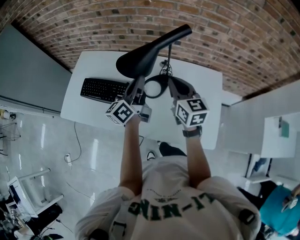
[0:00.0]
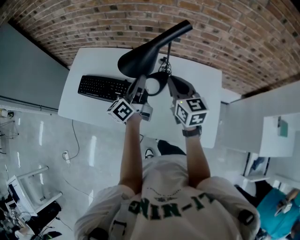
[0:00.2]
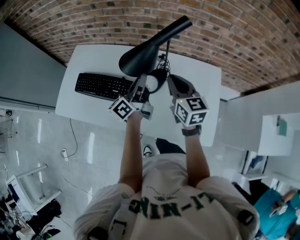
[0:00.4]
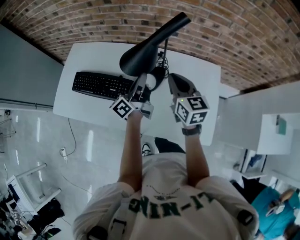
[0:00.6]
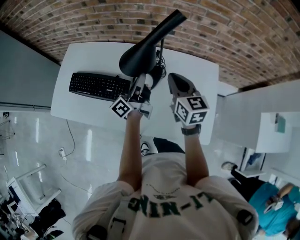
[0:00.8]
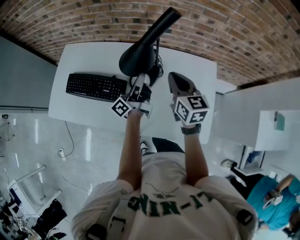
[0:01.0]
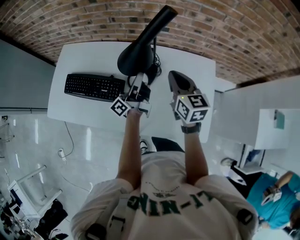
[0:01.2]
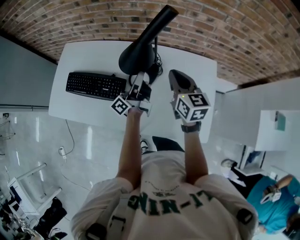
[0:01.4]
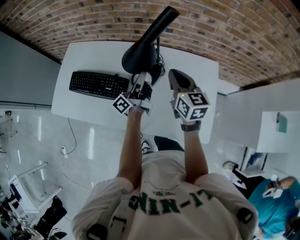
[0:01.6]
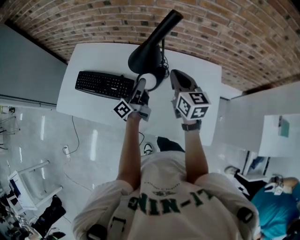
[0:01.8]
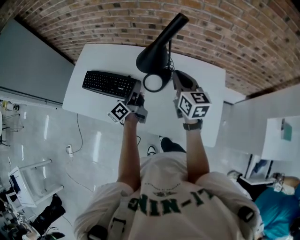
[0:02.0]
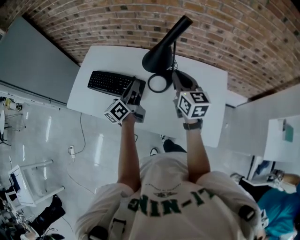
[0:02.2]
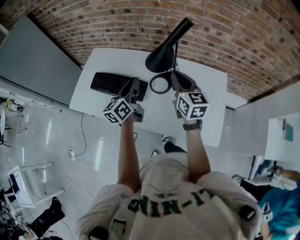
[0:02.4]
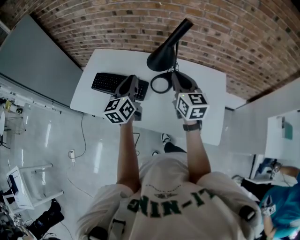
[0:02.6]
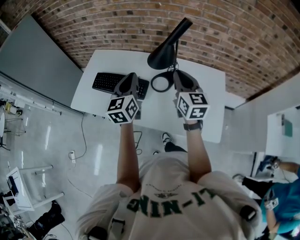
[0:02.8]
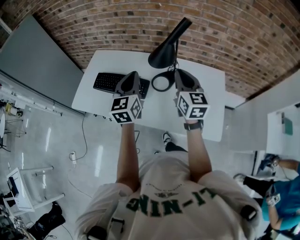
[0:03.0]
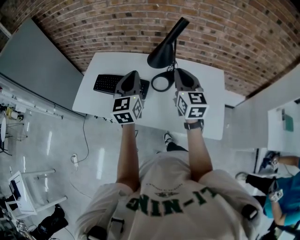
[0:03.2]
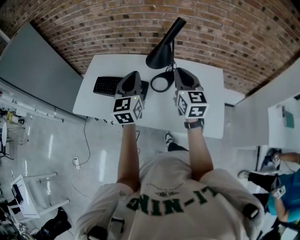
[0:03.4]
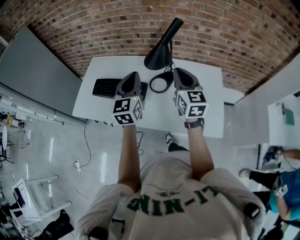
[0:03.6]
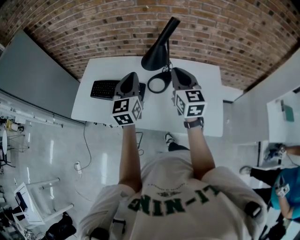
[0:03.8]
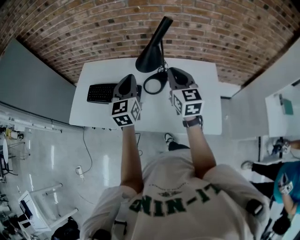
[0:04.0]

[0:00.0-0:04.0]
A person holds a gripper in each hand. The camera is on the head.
0:00.0 to 0:01.4: The left gripper shifts roughly 10 cm downward and to the right, and swivels some 30 degrees. Meanwhile the right gripper goes approximately 5 cm to the right.
0:01.4 to 0:02.6: Both grippers move to the left, backward and upward, some 15 cm. The left gripper twists some 50 degrees clockwise, seen from behind.

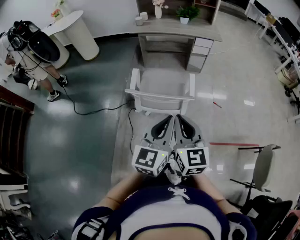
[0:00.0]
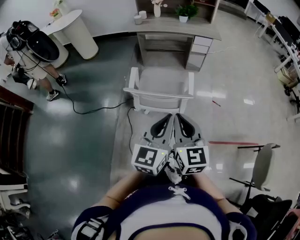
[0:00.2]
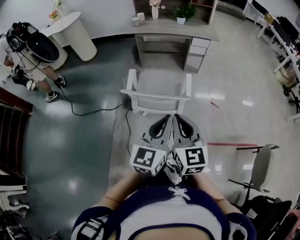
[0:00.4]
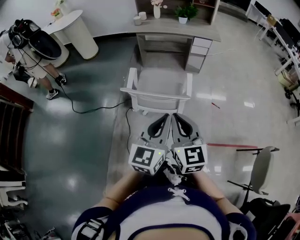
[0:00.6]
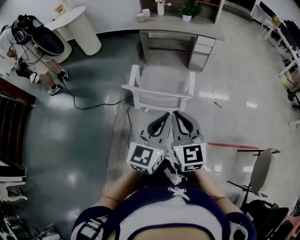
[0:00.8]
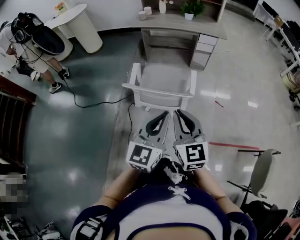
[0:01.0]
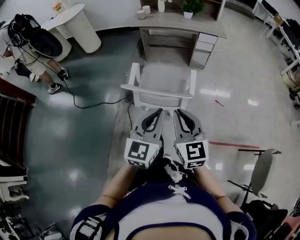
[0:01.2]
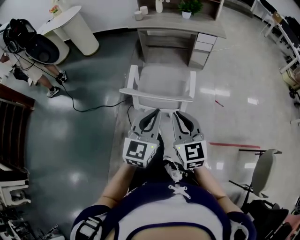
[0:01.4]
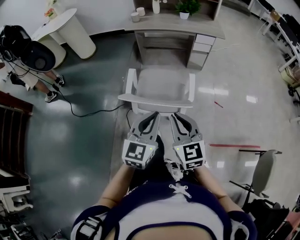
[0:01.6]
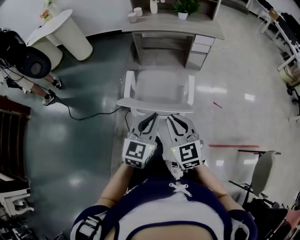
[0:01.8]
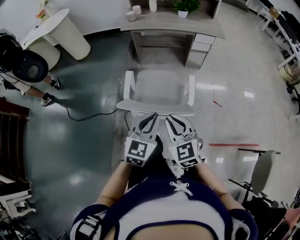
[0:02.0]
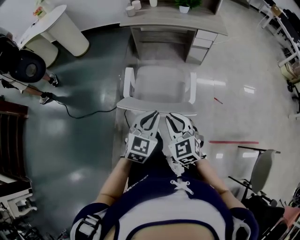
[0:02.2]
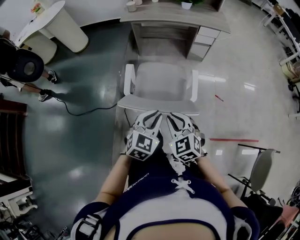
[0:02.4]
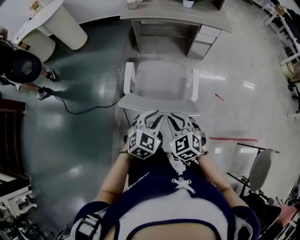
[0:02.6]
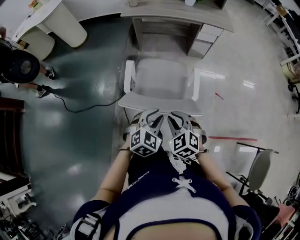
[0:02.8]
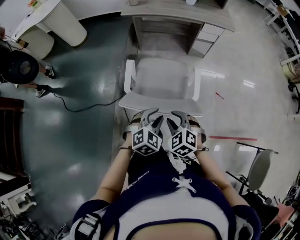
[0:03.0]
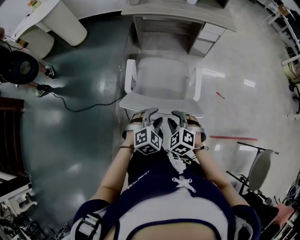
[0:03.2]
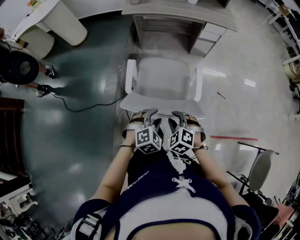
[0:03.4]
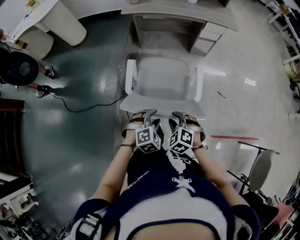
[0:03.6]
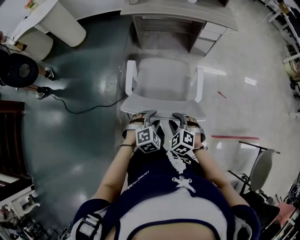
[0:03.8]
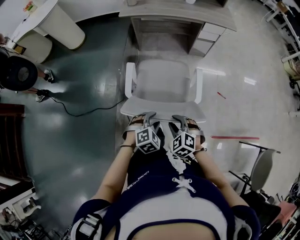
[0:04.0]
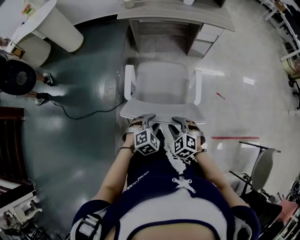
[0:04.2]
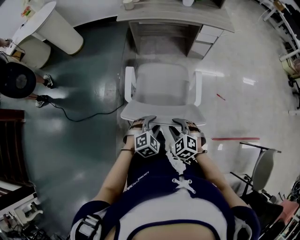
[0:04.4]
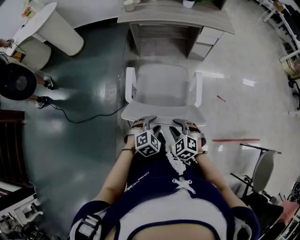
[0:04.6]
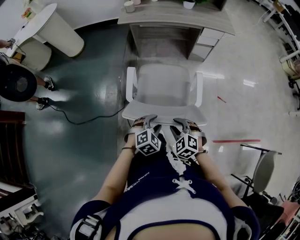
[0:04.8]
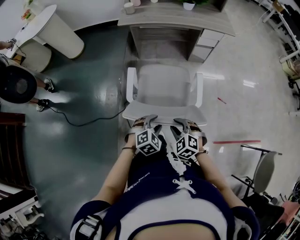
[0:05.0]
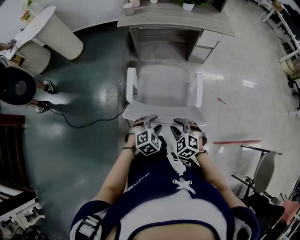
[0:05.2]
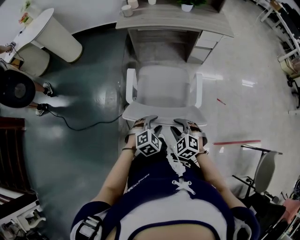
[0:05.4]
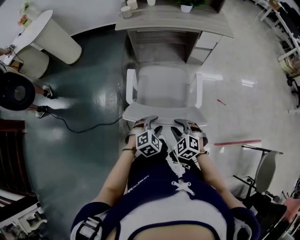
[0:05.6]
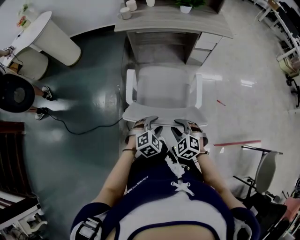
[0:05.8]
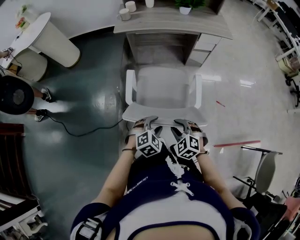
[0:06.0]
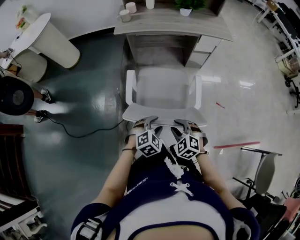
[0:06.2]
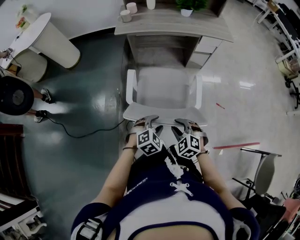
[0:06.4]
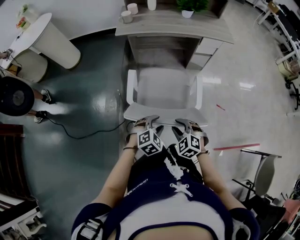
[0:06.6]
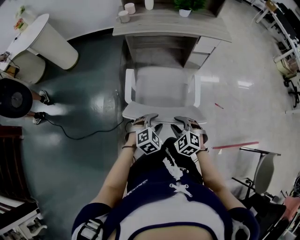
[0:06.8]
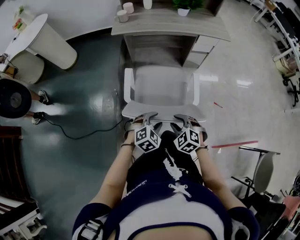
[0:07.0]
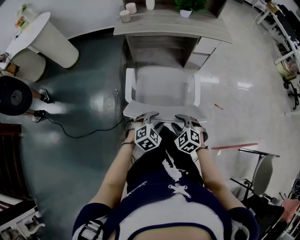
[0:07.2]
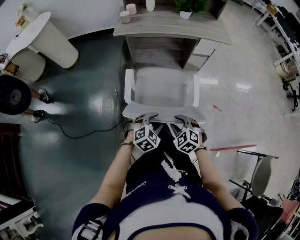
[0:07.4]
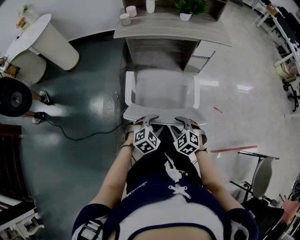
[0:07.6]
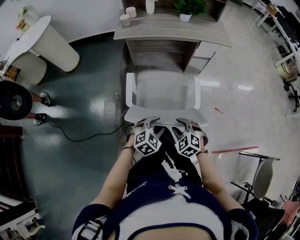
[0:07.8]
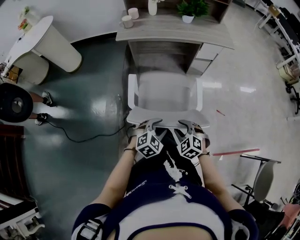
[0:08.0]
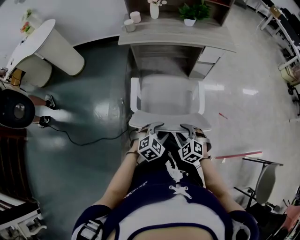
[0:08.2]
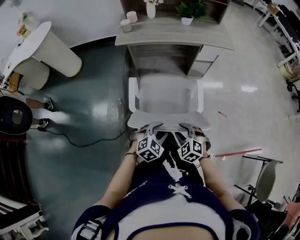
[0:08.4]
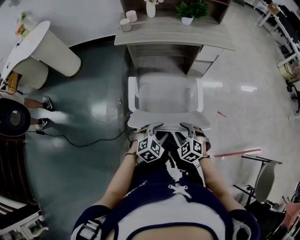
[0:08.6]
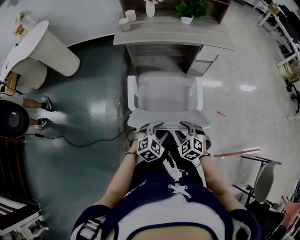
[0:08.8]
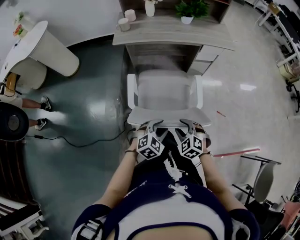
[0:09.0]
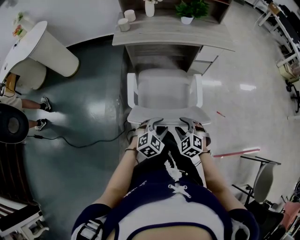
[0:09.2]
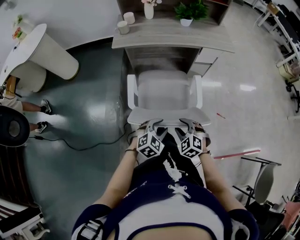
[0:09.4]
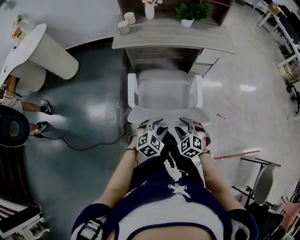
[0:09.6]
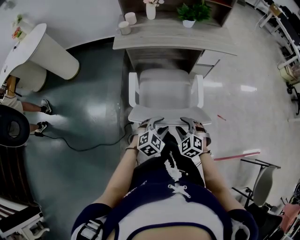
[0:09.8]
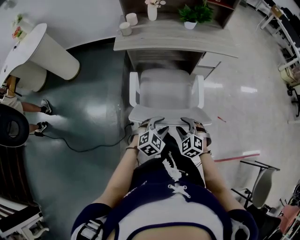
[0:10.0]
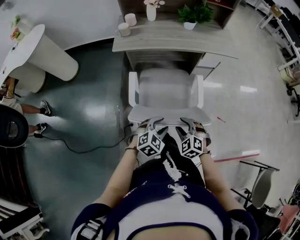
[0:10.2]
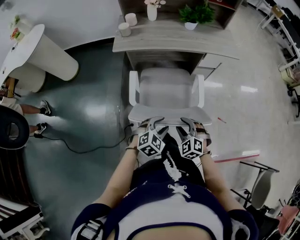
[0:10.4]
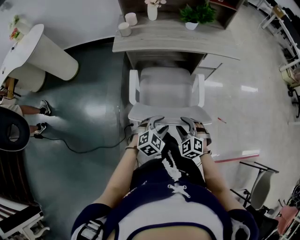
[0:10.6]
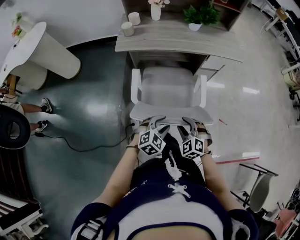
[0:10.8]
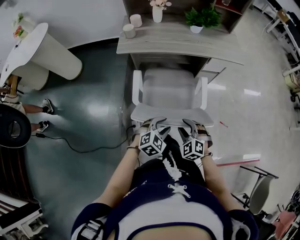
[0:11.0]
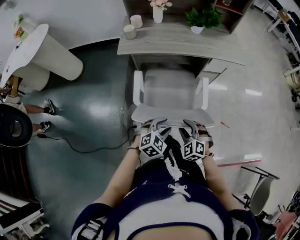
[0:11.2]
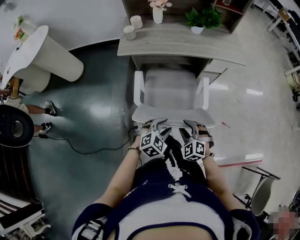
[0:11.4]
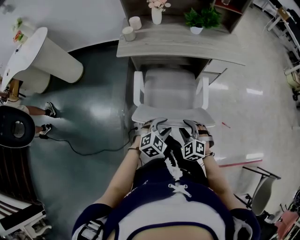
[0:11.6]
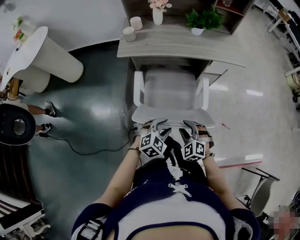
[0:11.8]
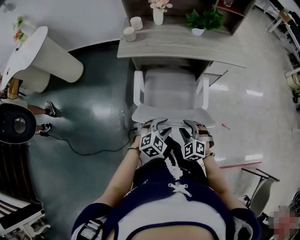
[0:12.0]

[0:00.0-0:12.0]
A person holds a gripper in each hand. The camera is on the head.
0:00.0 to 0:01.6: The grippers both shift forward and downward by some 10 cm.
0:01.6 to 0:03.0: Both grippers move downward and forward, some 20 cm. The right gripper tips its fingers downward by roughly 30 degrees, and opens up; the left gripper angles its fingers downward, by some 30 degrees, and opens up.
0:03.0 to 0:04.4: Both grippers travel together downward, approximately 5 cm.
0:04.4 to 0:06.0: The grippers both shift forward by roughly 10 cm.
0:06.0 to 0:07.6: The right gripper shifts roughly 5 cm forward.
0:07.6 to 0:09.0: Both grippers travel together forward, about 5 cm.
0:09.0 to 0:10.4: The grippers both shift forward by approximately 10 cm.
0:10.4 to 0:12.0: The grippers both shift forward by roughly 5 cm.

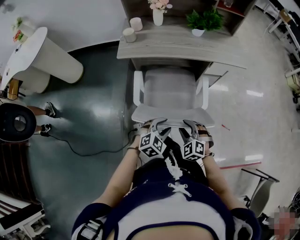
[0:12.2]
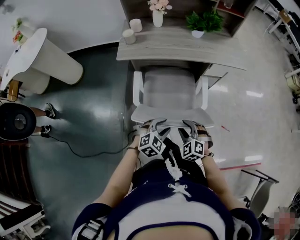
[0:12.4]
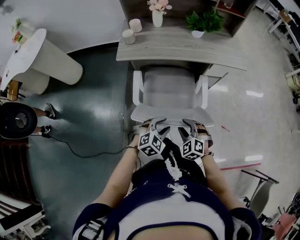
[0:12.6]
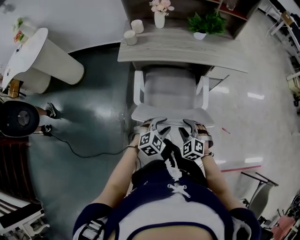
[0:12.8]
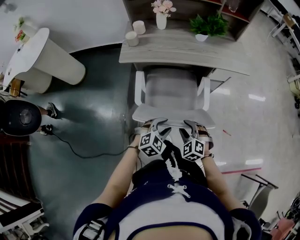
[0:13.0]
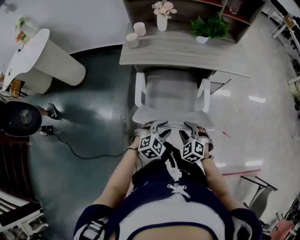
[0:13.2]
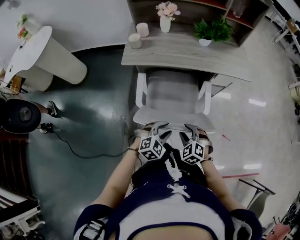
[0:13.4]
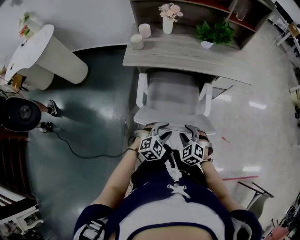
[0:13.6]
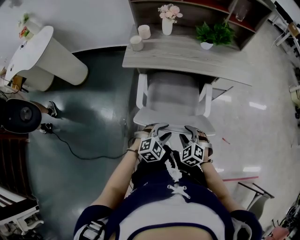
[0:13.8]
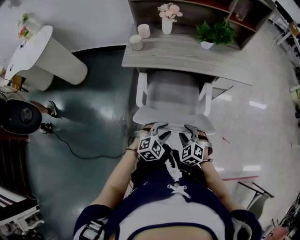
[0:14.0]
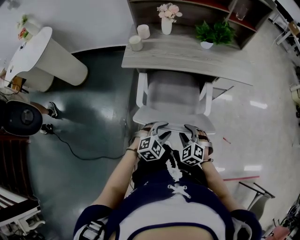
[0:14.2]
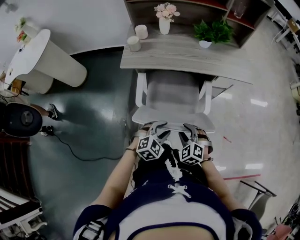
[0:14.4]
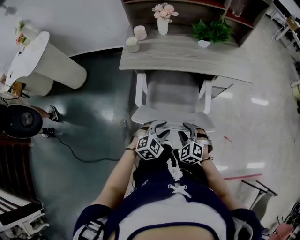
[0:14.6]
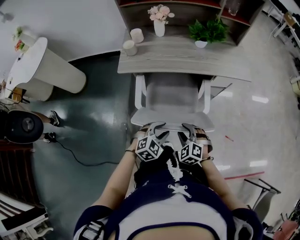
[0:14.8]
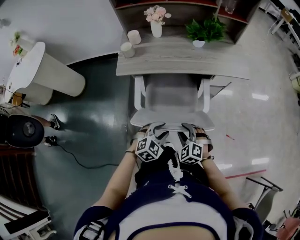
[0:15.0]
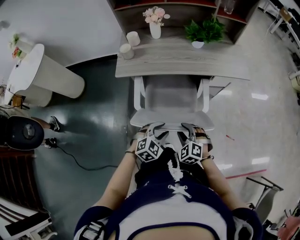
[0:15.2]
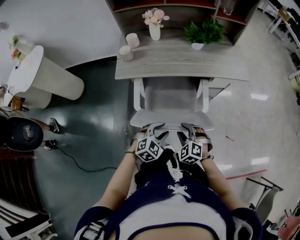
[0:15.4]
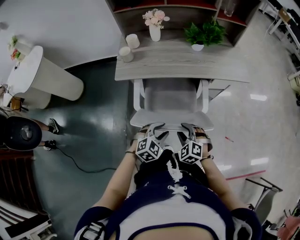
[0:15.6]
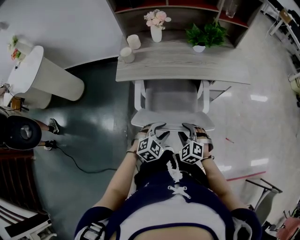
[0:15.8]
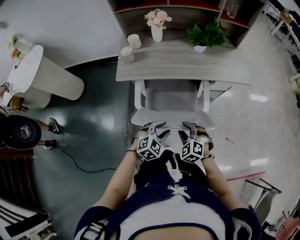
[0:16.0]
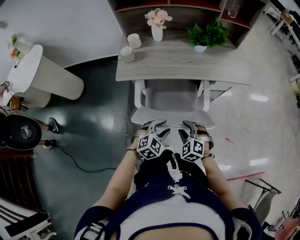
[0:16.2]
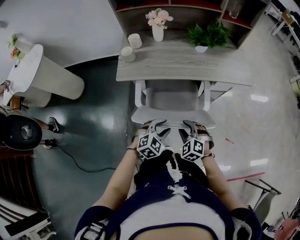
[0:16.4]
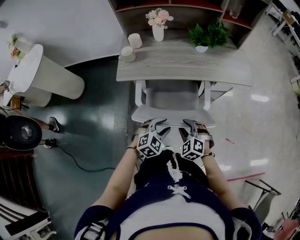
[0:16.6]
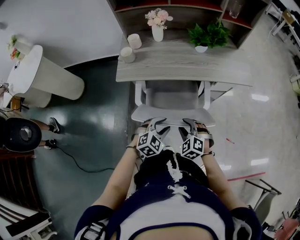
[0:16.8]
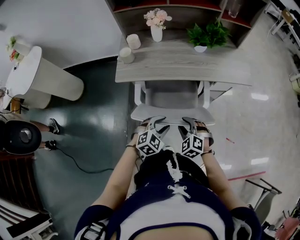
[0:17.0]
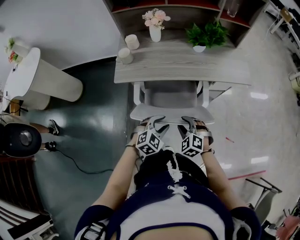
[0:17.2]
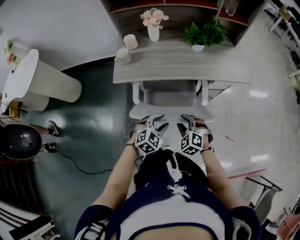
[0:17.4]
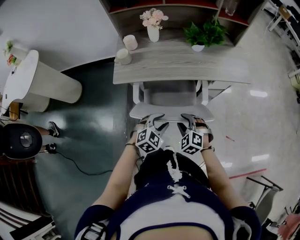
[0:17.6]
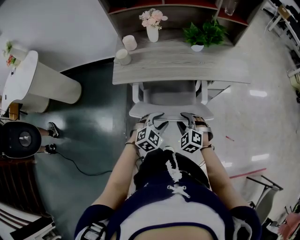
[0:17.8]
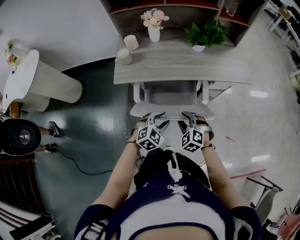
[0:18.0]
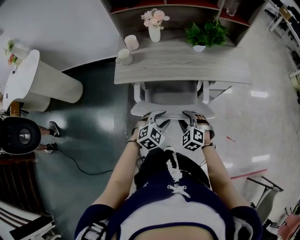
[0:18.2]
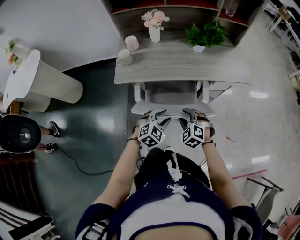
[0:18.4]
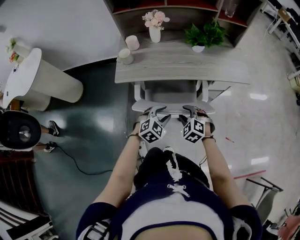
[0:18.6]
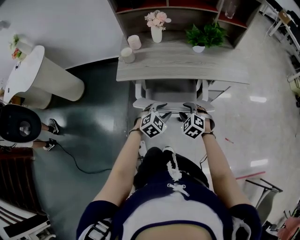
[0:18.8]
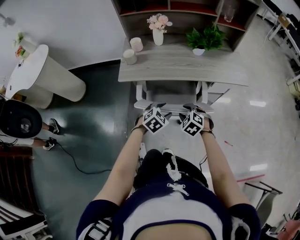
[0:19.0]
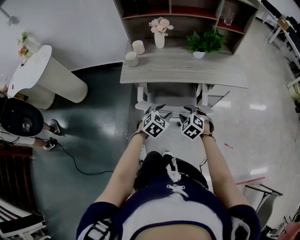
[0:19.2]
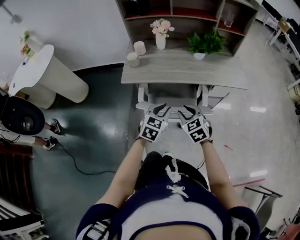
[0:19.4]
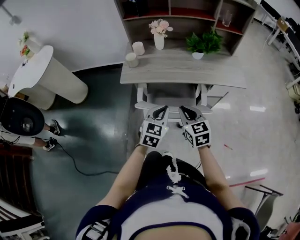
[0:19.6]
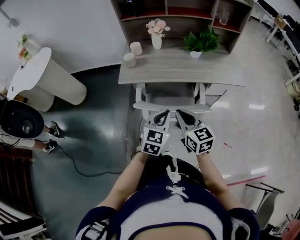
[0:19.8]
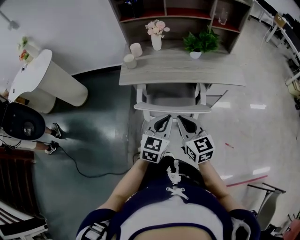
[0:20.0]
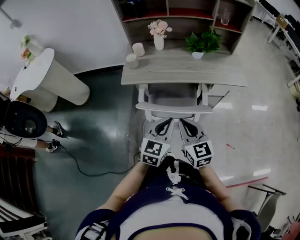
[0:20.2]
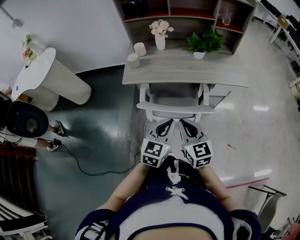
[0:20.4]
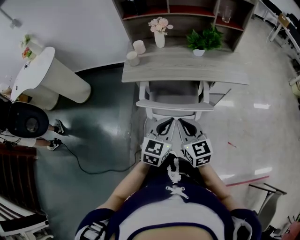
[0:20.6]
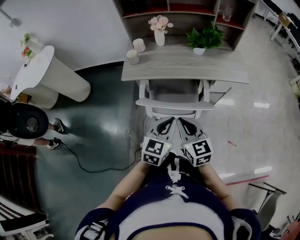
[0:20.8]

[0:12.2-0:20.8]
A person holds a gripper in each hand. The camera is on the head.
0:12.2 to 0:13.6: Both grippers travel together forward, approximately 5 cm.
0:13.6 to 0:15.0: The grippers move only a little.
0:15.0 to 0:16.6: The grippers both shift forward by about 5 cm.
0:16.6 to 0:18.0: The grippers move only a little.
0:18.0 to 0:19.4: Both grippers move upward, about 10 cm. The right gripper turns by about 30 degrees. Meanwhile the left gripper swivels about 30 degrees.
0:19.4 to 0:20.8: The grippers both shift backward and upward by roughly 10 cm. The right gripper swivels about 30 degrees, and closes its fingers. The left gripper closes up.
